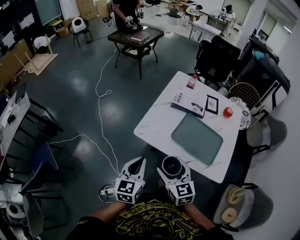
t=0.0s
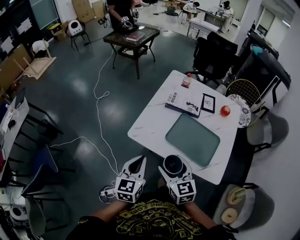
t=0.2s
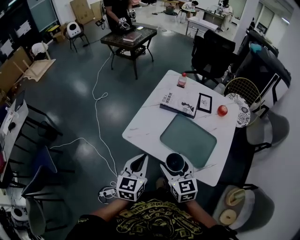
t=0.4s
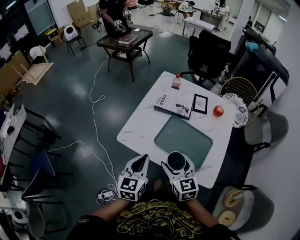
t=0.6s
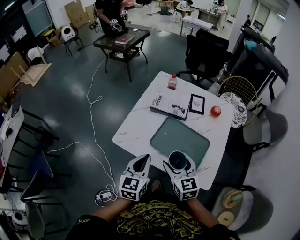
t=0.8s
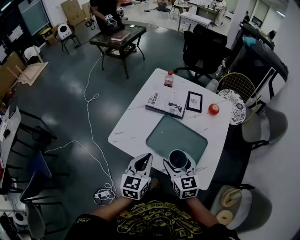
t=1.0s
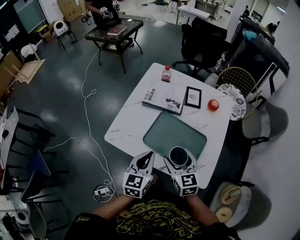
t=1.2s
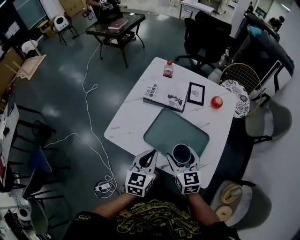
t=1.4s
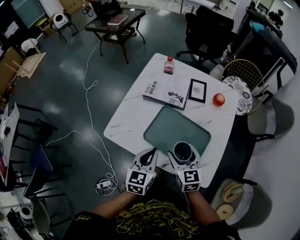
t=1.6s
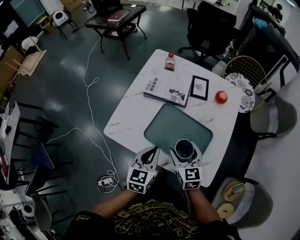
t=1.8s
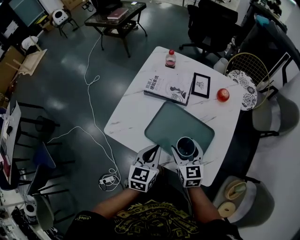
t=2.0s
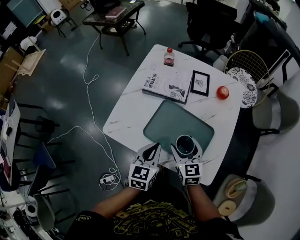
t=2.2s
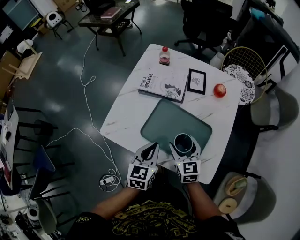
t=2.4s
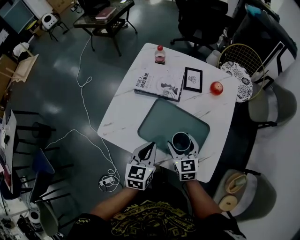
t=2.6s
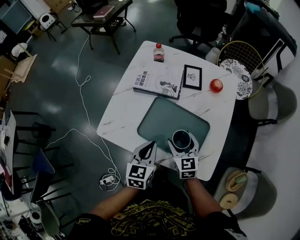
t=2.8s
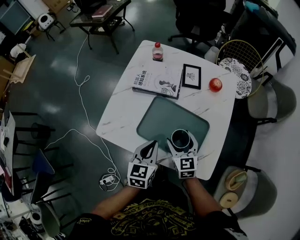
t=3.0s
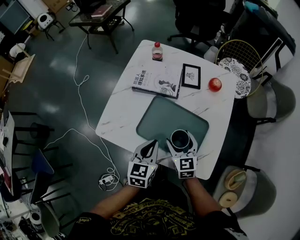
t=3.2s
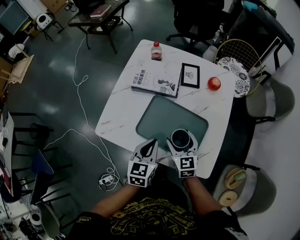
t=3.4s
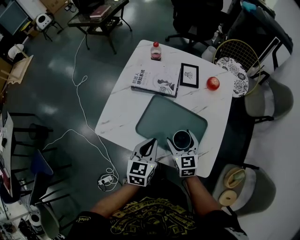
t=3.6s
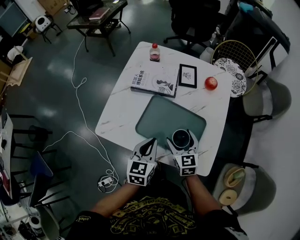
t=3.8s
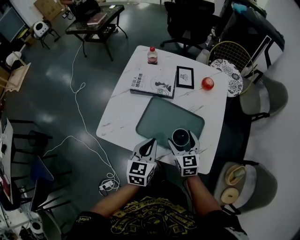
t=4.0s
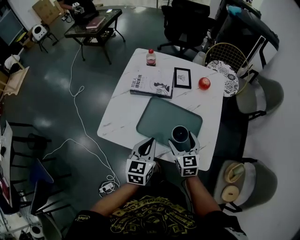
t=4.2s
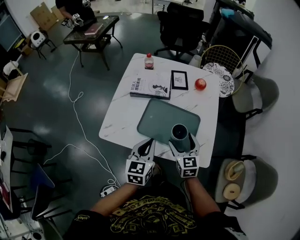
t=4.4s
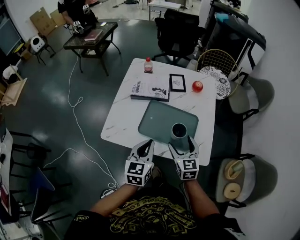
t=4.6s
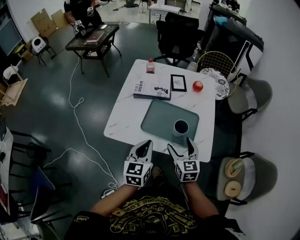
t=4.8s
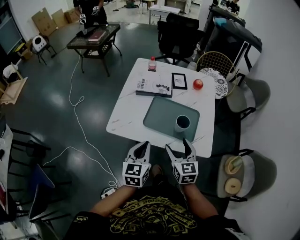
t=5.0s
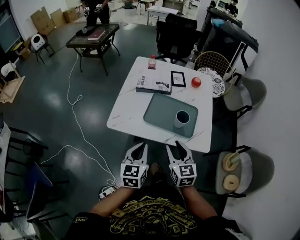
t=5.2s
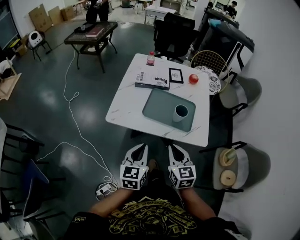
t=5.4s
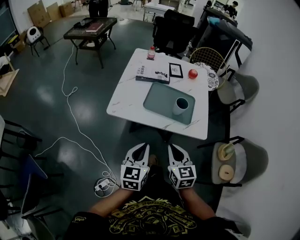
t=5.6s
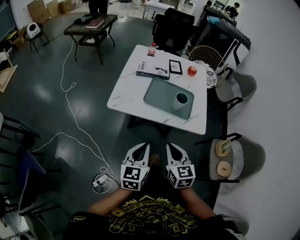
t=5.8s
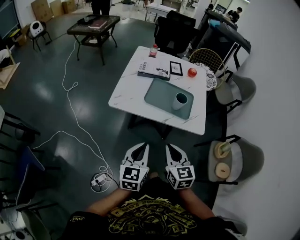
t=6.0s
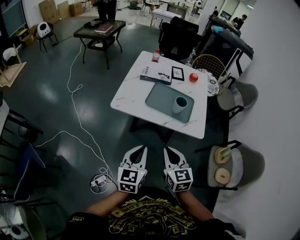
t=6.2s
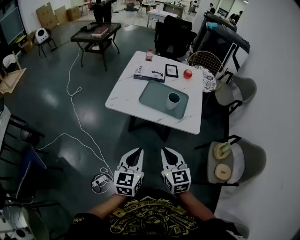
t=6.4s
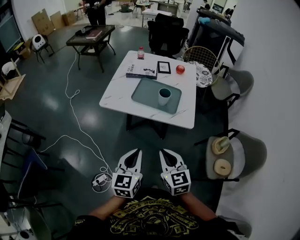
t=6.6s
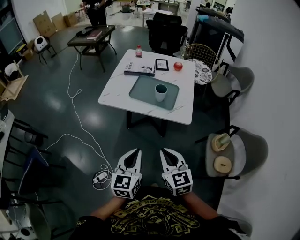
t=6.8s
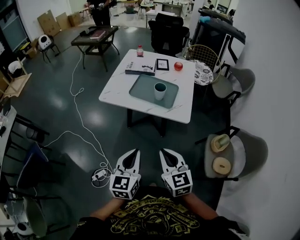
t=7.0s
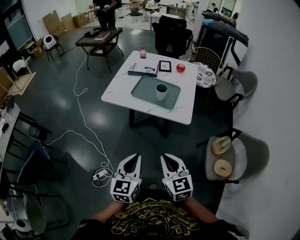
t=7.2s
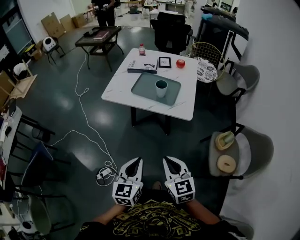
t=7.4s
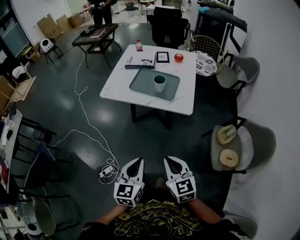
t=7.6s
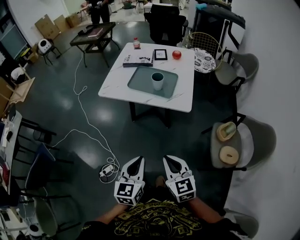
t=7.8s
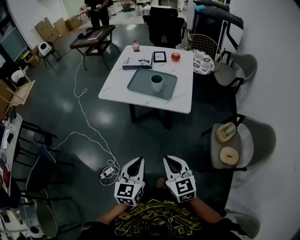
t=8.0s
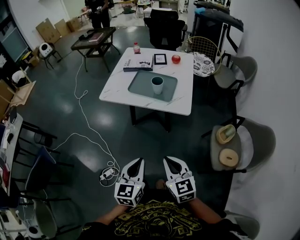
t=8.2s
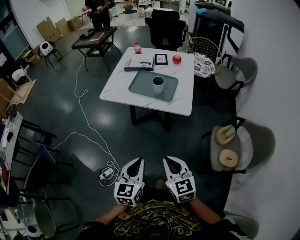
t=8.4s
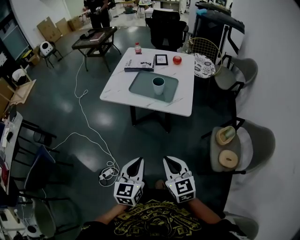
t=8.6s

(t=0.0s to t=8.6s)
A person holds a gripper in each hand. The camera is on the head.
t=0.0s - t=1.4s: Both grippers travel together to the right and forward, approximately 25 cm.
t=1.4s - t=2.8s: The right gripper heads downward, covering some 10 cm; the left gripper ends up approximately 5 cm from where it was.
t=2.8s - t=4.4s: The right gripper travels backward by about 5 cm. The left gripper goes approximately 5 cm upward.
t=4.4s - t=5.8s: Both grippers move backward, some 25 cm. The right gripper closes.
t=5.8s - t=7.2s: The grippers both shift backward and to the right by approximately 20 cm.
t=7.2s - t=8.6s: The right gripper changes place by roughly 5 cm.

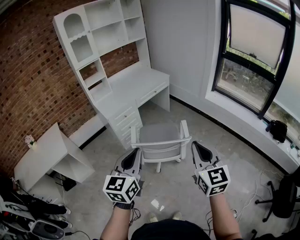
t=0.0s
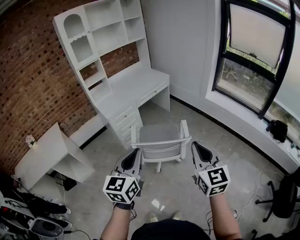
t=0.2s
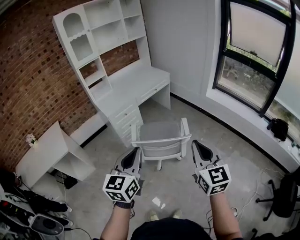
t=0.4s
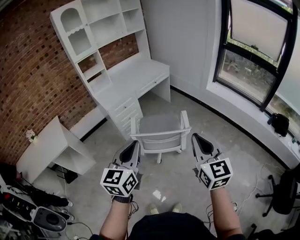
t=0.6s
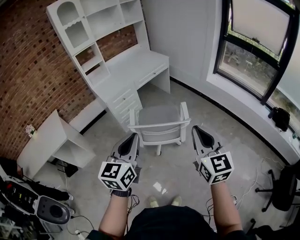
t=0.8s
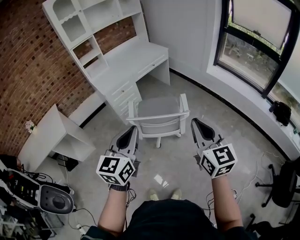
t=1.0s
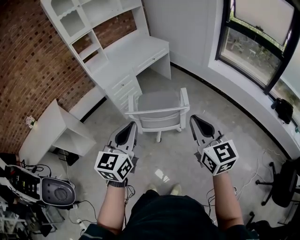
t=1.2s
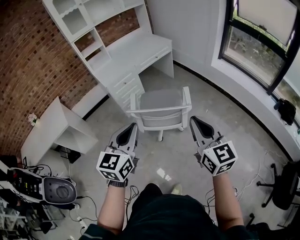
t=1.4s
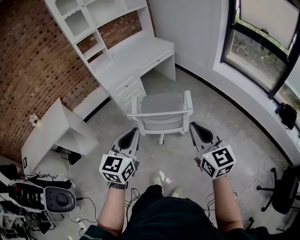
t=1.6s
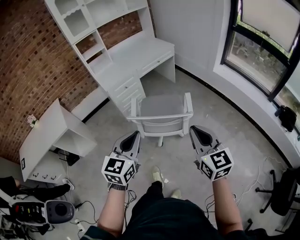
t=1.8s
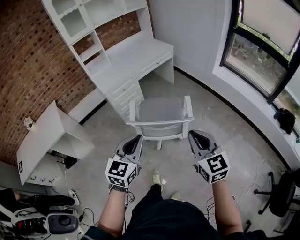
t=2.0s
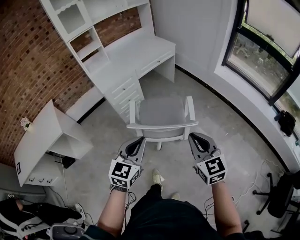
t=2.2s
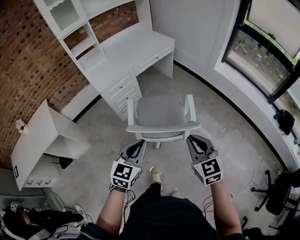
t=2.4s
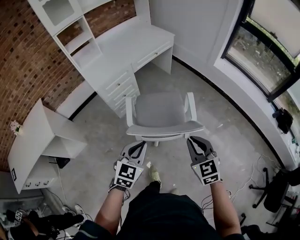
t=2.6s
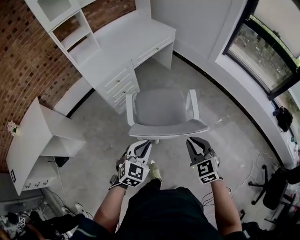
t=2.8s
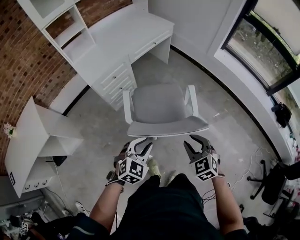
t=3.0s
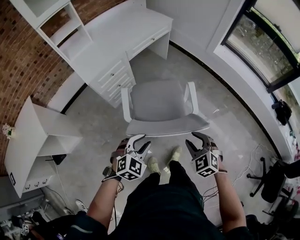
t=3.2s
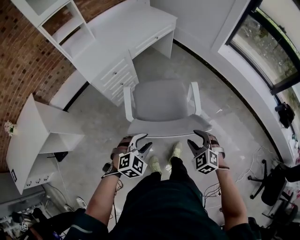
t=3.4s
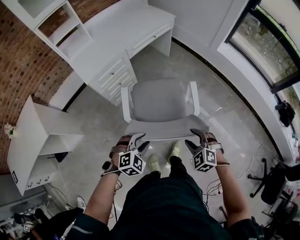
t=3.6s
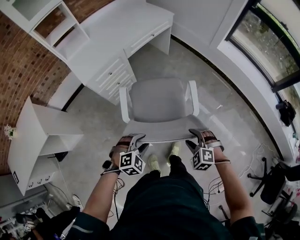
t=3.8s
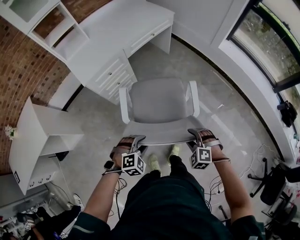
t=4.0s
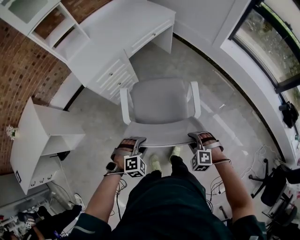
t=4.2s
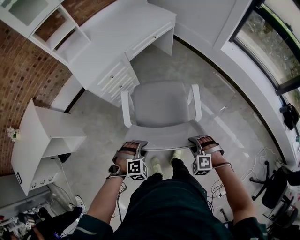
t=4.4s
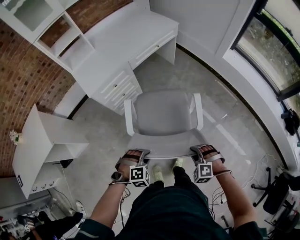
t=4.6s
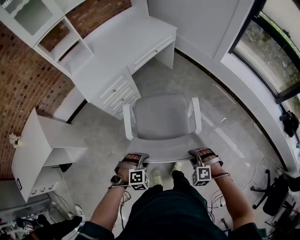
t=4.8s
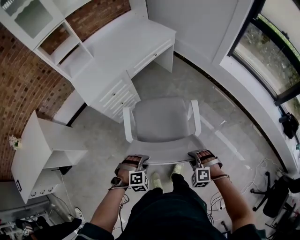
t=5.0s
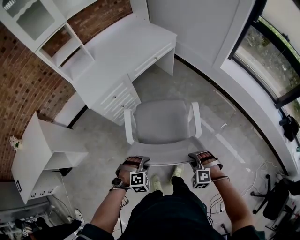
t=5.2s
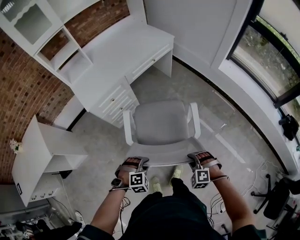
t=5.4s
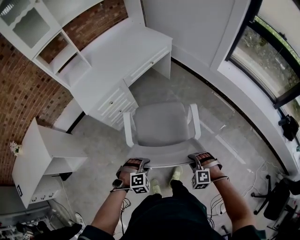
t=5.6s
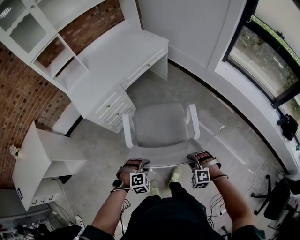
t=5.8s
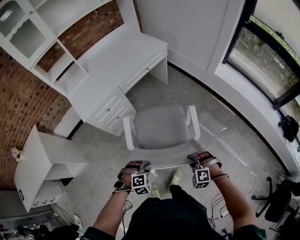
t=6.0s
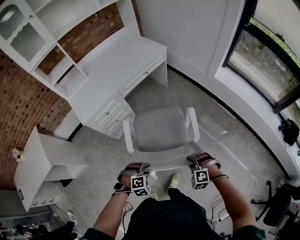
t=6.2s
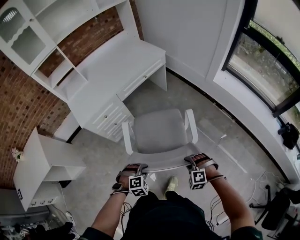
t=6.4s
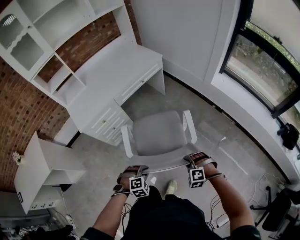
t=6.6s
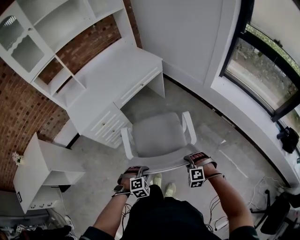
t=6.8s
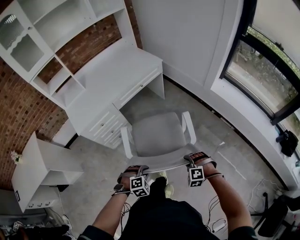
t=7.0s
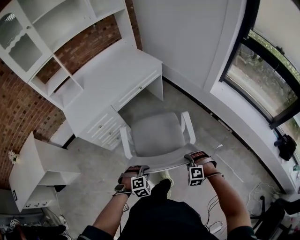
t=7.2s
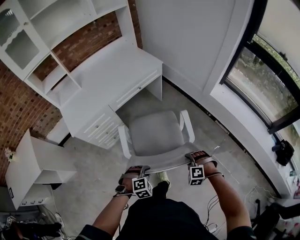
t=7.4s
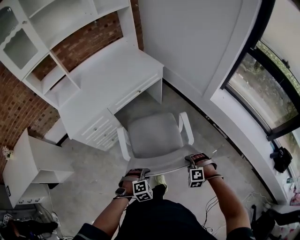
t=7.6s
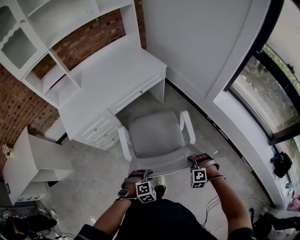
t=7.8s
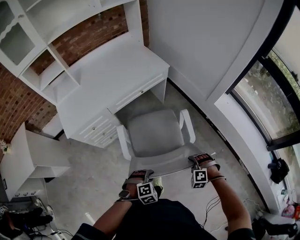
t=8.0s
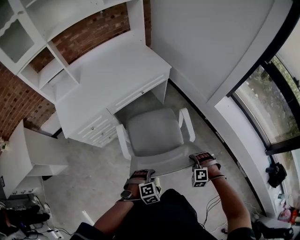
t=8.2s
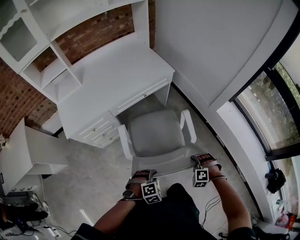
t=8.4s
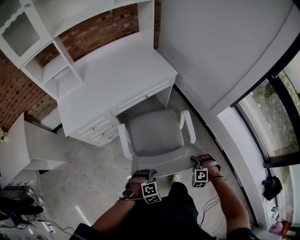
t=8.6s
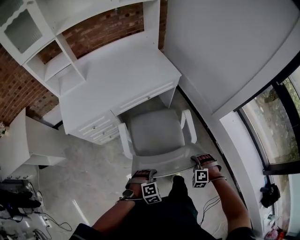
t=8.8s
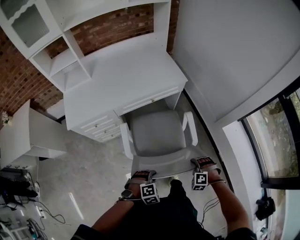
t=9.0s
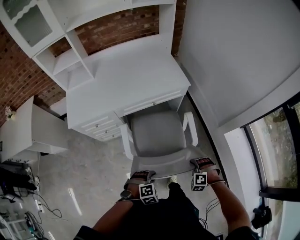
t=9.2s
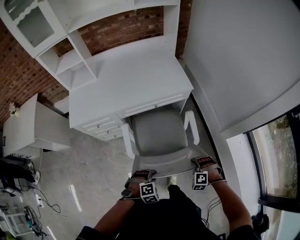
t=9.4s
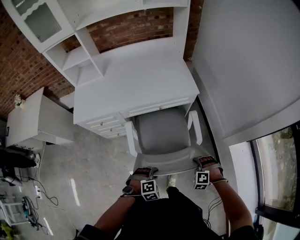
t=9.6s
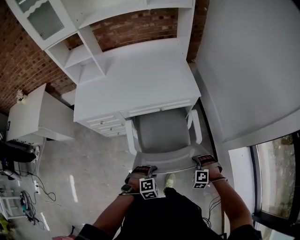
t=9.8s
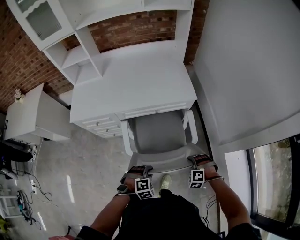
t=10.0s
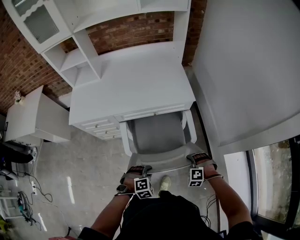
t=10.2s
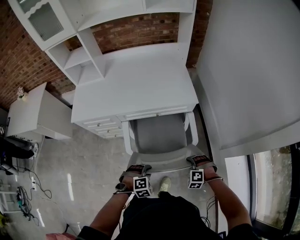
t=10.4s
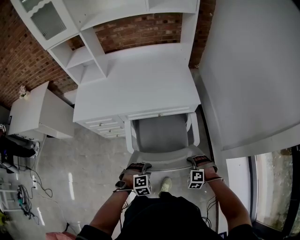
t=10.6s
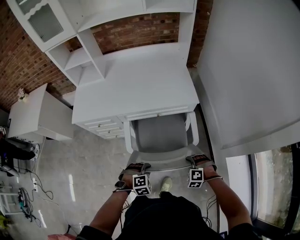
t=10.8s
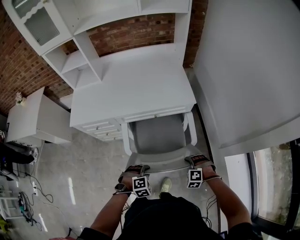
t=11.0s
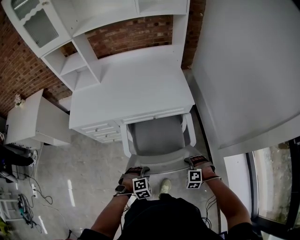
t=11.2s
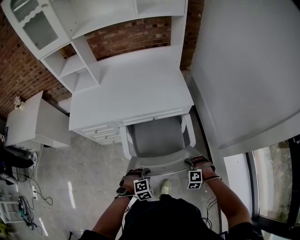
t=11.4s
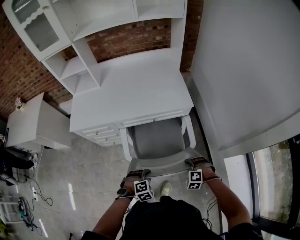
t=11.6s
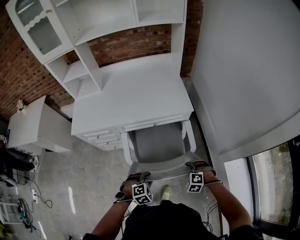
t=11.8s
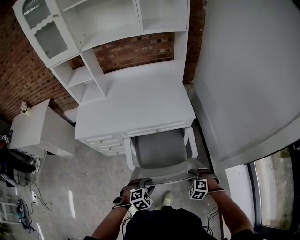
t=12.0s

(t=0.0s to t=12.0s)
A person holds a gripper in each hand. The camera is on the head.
t=0.0s - t=1.6s: The two grippers go some 5 cm downward.
t=1.6s - t=3.0s: The left gripper shifts roughly 30 cm downward and forward, changes its angle by about 40 degrees, and opens up. The right gripper heads downward, forward and to the left, covering about 30 cm, tilts its fingers about 40 degrees downward, and opens.
t=3.0s - t=4.4s: Both grippers travel together downward, about 15 cm. The left gripper swivels roughly 40 degrees; the right gripper changes its angle by approximately 40 degrees, and opens, then closes again.
t=4.4s - t=6.0s: The left gripper shifts about 10 cm to the right and forward, while the right gripper goes approximately 10 cm forward and to the right.
t=6.0s - t=7.6s: Both grippers travel together forward and to the right, some 20 cm.
t=7.6s - t=9.0s: Both grippers move forward, approximately 20 cm.
t=9.0s - t=10.4s: Both grippers move forward, roughly 15 cm.
t=10.4s - t=12.0s: The left gripper opens. Meanwhile the right gripper opens.

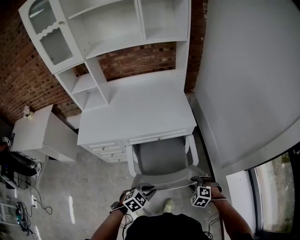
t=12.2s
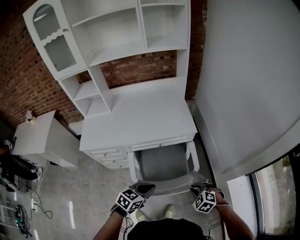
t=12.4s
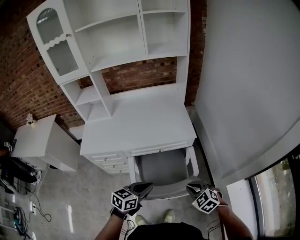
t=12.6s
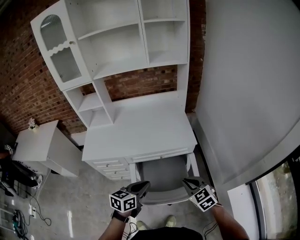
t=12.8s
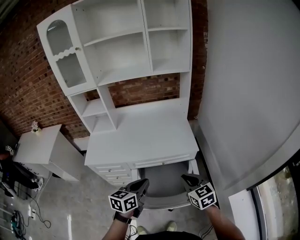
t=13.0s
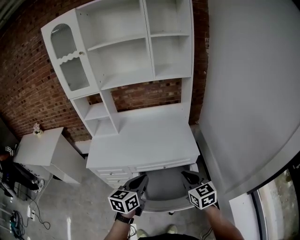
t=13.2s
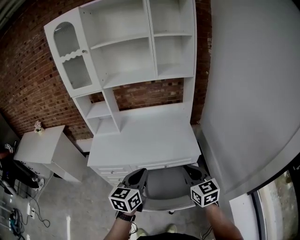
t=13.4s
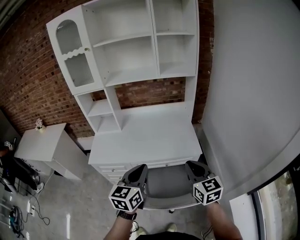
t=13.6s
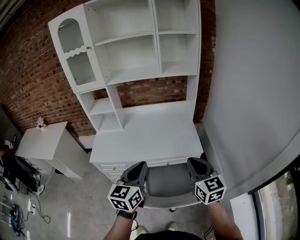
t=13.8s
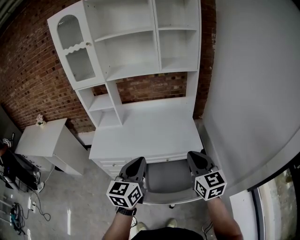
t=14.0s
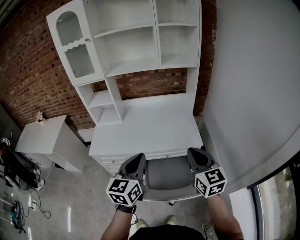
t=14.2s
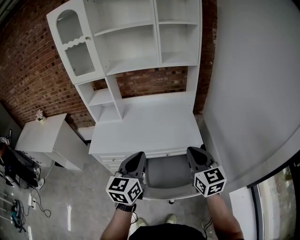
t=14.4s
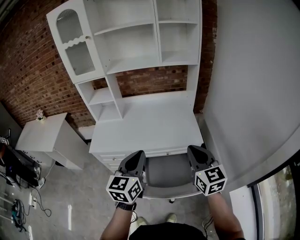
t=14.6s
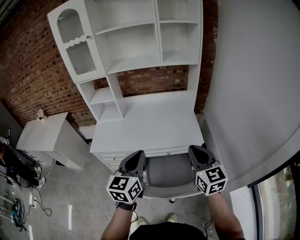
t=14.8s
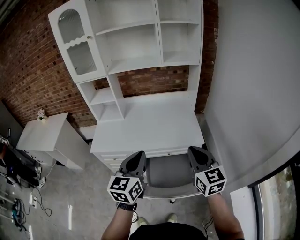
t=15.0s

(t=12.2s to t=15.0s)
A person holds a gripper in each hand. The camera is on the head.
t=12.2s - t=13.6s: Both grippers move upward and forward, approximately 35 cm. The left gripper angles its fingers upward, by approximately 40 degrees. Meanwhile the right gripper tips its fingers upward by about 50 degrees, and closes its fingers.
t=13.6s - t=15.0s: The grippers move only a little.
